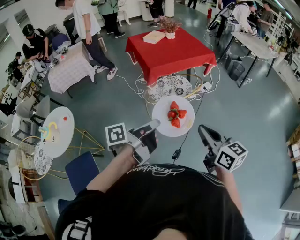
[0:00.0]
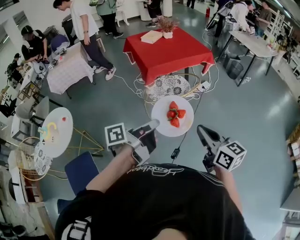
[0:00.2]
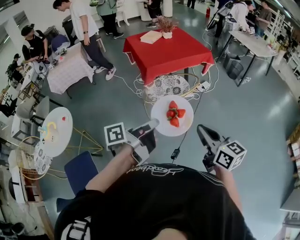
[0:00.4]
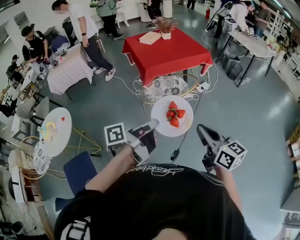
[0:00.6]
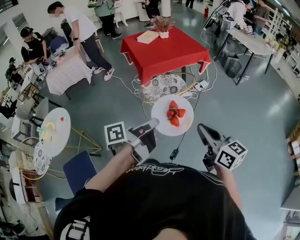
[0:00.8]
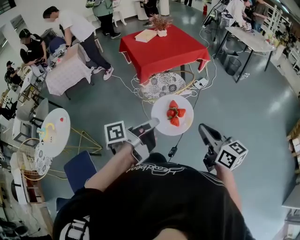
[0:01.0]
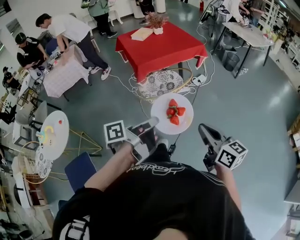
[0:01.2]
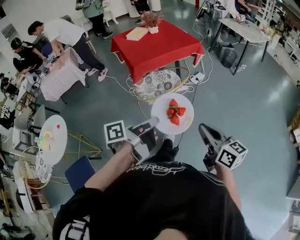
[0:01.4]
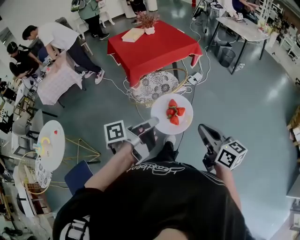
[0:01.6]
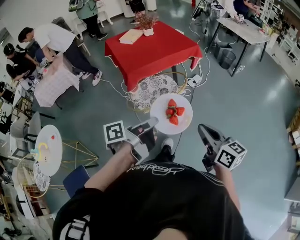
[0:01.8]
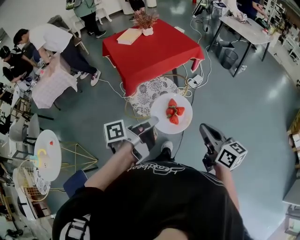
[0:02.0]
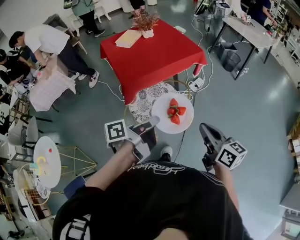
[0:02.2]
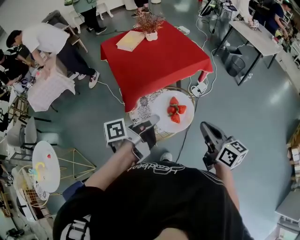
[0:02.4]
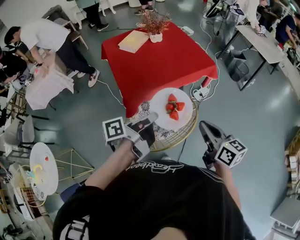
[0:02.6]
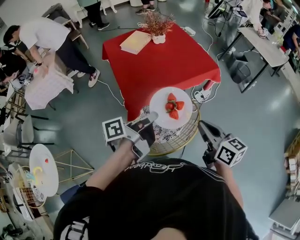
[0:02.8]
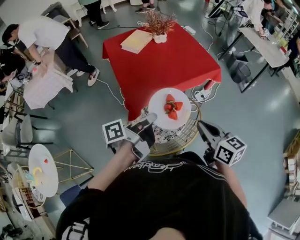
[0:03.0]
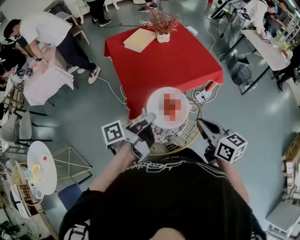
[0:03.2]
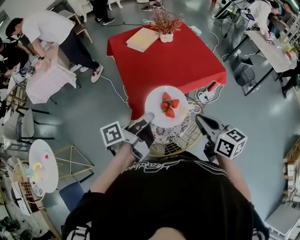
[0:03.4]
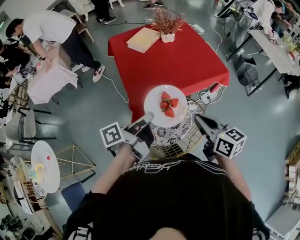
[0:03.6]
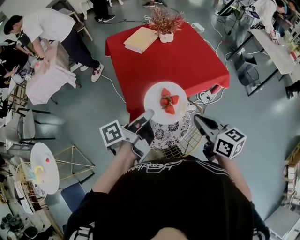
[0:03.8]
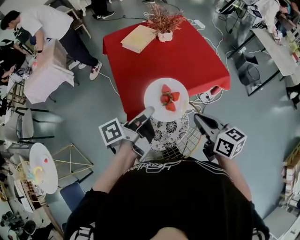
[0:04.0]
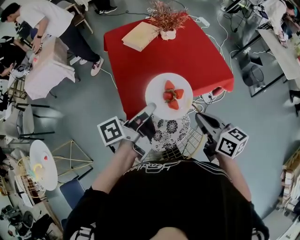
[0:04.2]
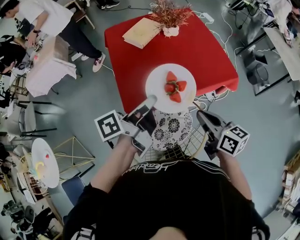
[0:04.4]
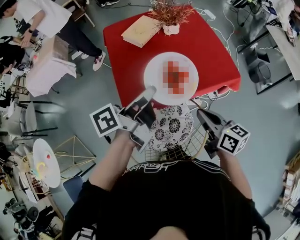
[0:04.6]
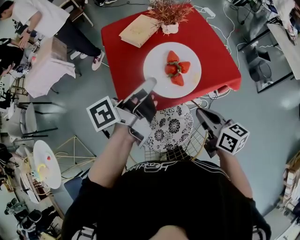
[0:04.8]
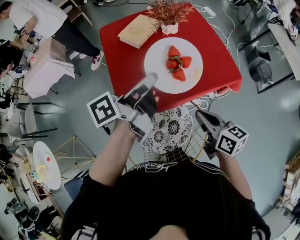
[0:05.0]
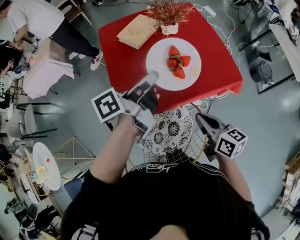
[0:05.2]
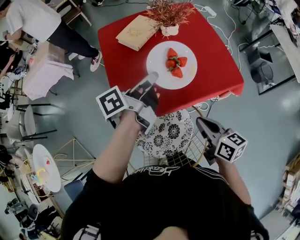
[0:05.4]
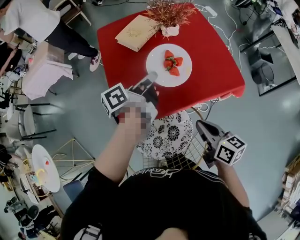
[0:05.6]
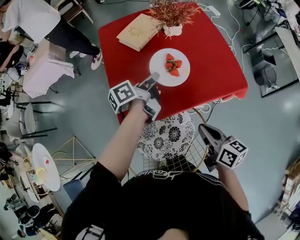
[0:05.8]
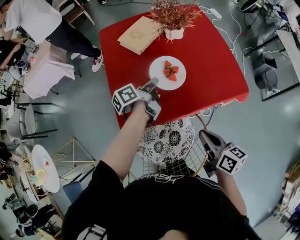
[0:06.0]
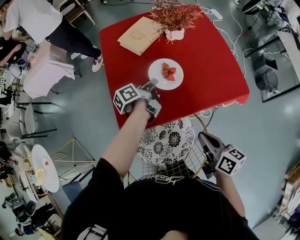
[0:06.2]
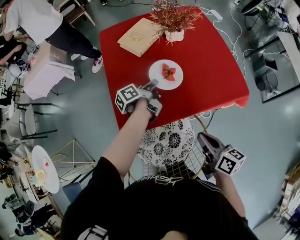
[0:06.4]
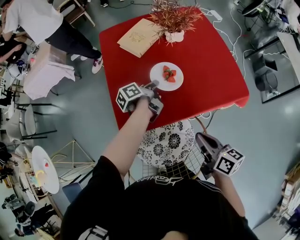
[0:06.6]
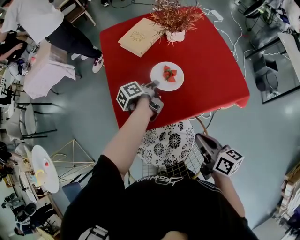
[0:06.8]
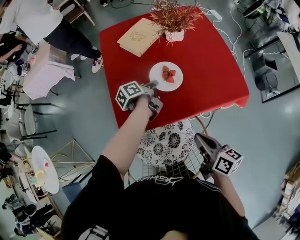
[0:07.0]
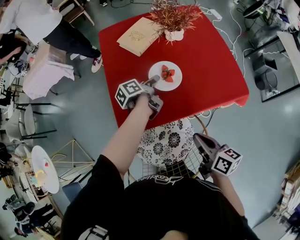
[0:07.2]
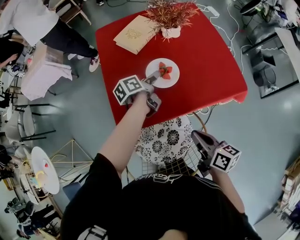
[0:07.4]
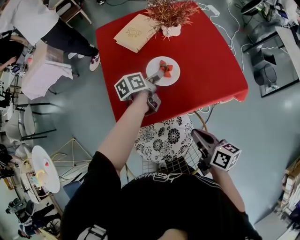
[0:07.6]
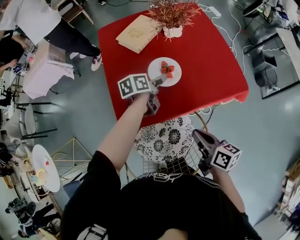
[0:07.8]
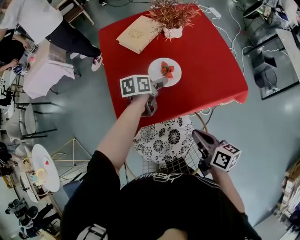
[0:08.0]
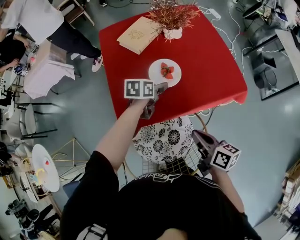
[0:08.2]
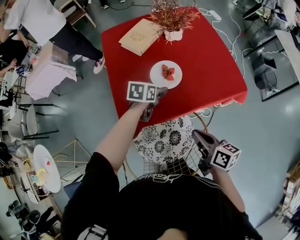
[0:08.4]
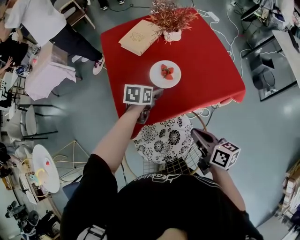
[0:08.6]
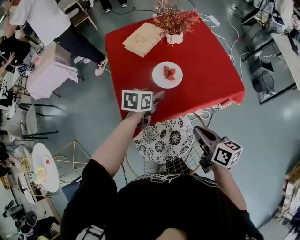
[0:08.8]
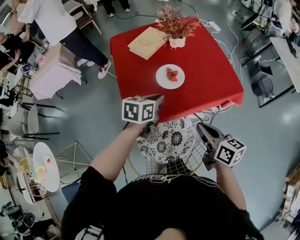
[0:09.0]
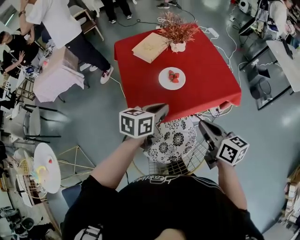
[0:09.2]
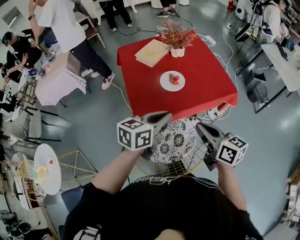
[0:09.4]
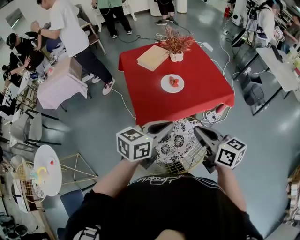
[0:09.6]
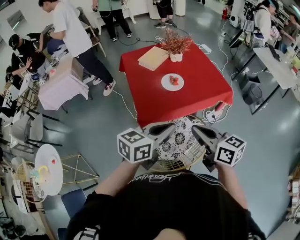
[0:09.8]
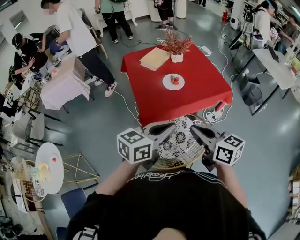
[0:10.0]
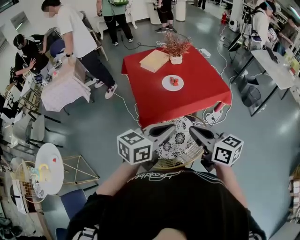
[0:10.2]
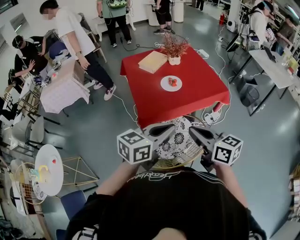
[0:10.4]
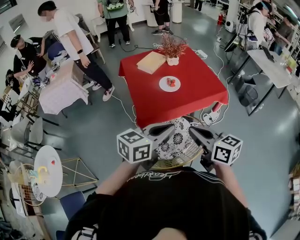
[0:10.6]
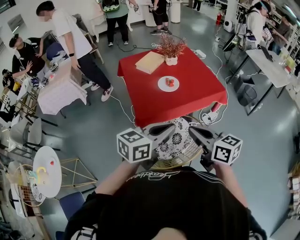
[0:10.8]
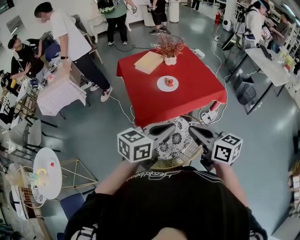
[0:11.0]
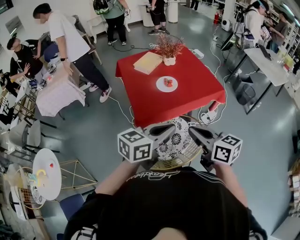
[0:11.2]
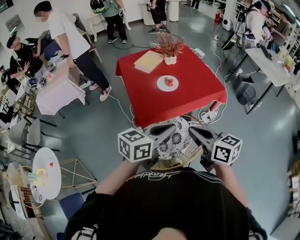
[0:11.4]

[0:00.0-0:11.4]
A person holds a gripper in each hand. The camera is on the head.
0:00.0 to 0:01.4: The two grippers go approximately 10 cm to the right.
0:01.4 to 0:02.8: The pair of grippers is taken forward, approximately 40 cm.
0:02.8 to 0:04.2: Both grippers move forward, approximately 15 cm.
0:04.2 to 0:05.6: The right gripper is displaced downward and forward by roughly 10 cm, while the left gripper goes some 20 cm forward.
0:05.6 to 0:07.2: The left gripper goes about 15 cm downward and forward, swivels roughly 20 degrees, and opens its fingers.
0:07.2 to 0:08.6: The left gripper twists about 60 degrees clockwise, seen from behind, and opens up.
0:08.6 to 0:10.0: The left gripper travels backward and upward by approximately 40 cm, tilts its fingers some 40 degrees upward, and closes. The right gripper travels upward, backward and to the left by roughly 25 cm, and turns by roughly 20 degrees.
0:10.0 to 0:11.4: There are only small adjustments of the grippers.

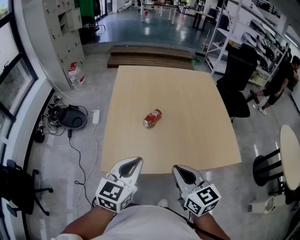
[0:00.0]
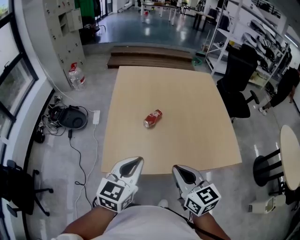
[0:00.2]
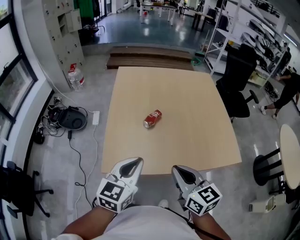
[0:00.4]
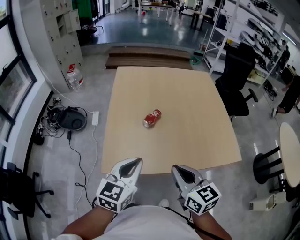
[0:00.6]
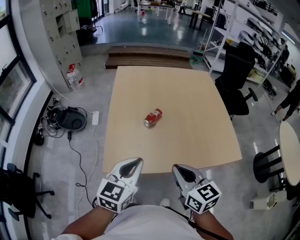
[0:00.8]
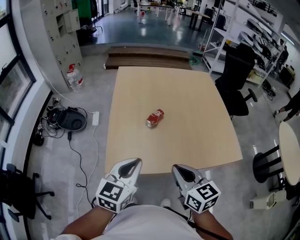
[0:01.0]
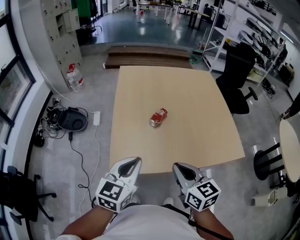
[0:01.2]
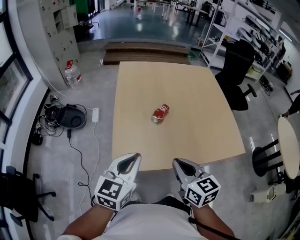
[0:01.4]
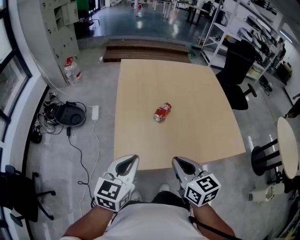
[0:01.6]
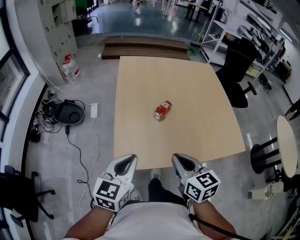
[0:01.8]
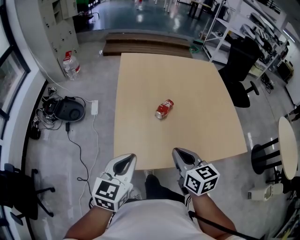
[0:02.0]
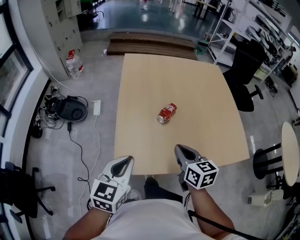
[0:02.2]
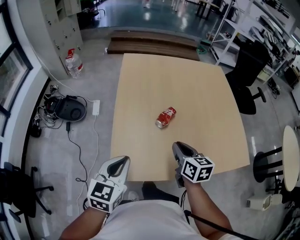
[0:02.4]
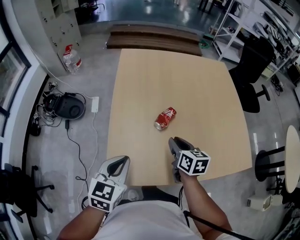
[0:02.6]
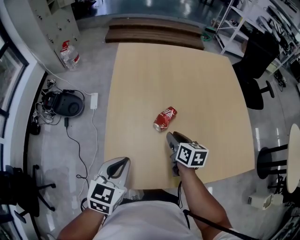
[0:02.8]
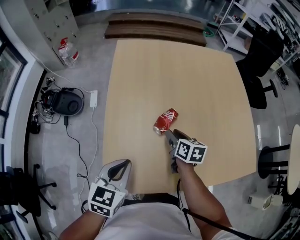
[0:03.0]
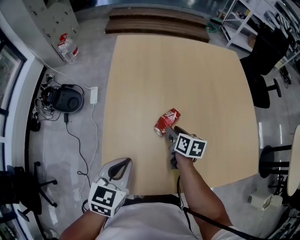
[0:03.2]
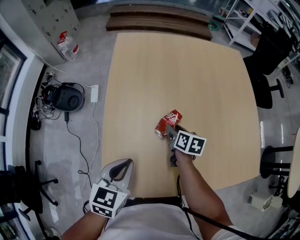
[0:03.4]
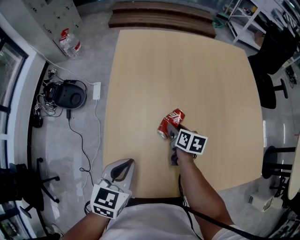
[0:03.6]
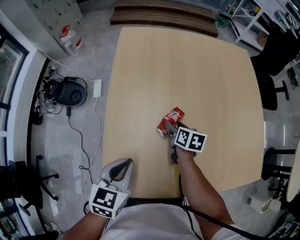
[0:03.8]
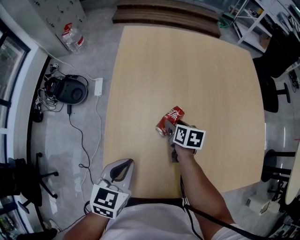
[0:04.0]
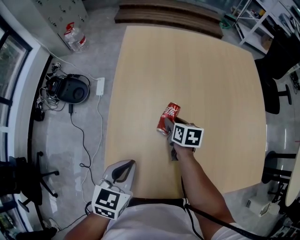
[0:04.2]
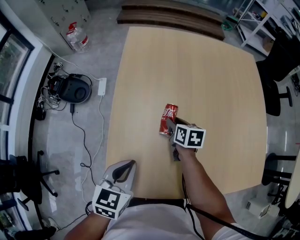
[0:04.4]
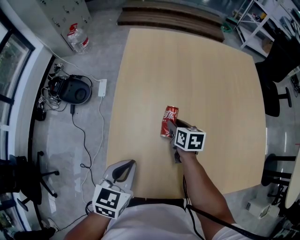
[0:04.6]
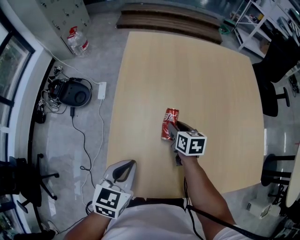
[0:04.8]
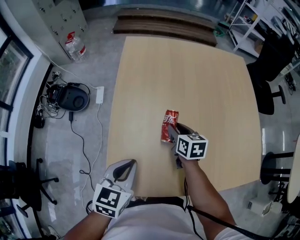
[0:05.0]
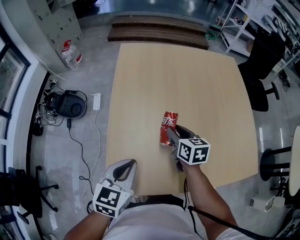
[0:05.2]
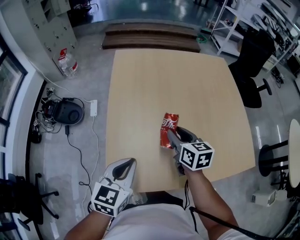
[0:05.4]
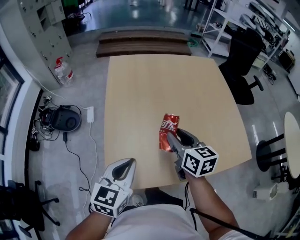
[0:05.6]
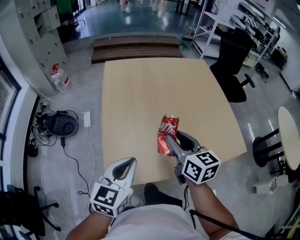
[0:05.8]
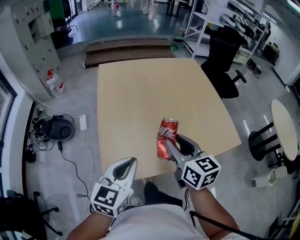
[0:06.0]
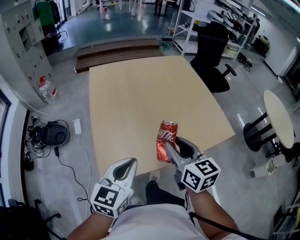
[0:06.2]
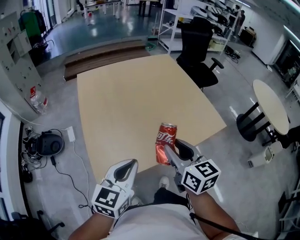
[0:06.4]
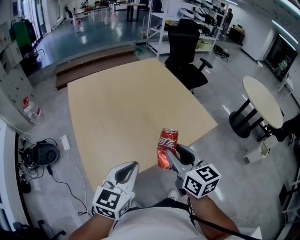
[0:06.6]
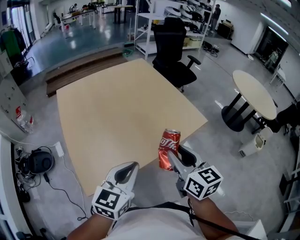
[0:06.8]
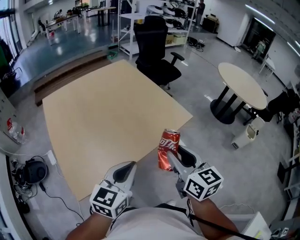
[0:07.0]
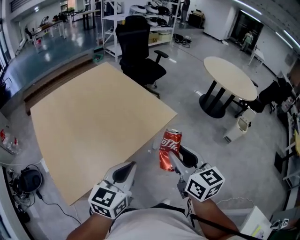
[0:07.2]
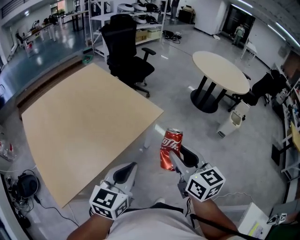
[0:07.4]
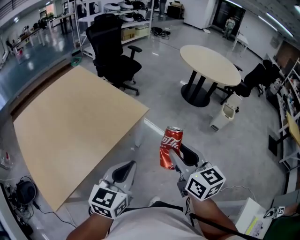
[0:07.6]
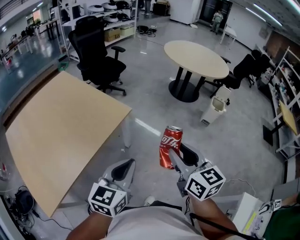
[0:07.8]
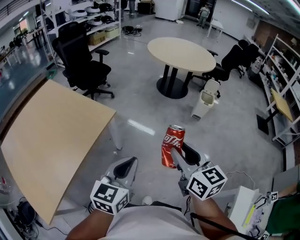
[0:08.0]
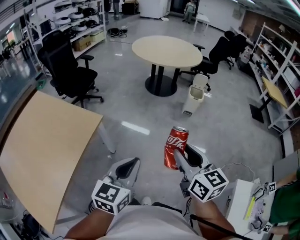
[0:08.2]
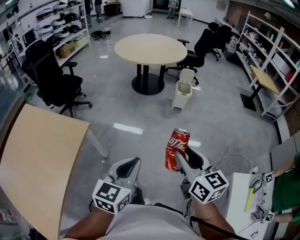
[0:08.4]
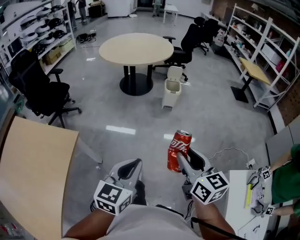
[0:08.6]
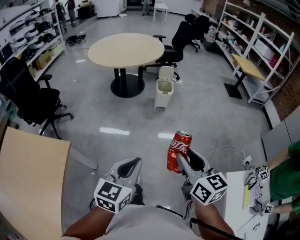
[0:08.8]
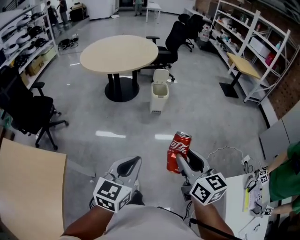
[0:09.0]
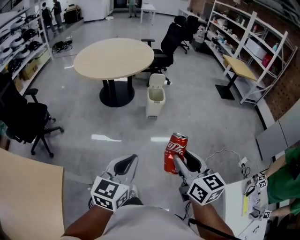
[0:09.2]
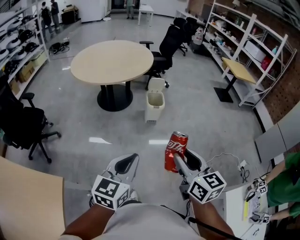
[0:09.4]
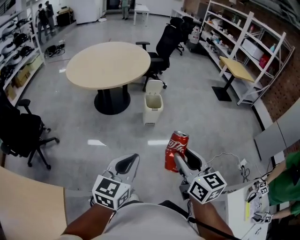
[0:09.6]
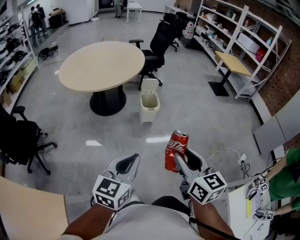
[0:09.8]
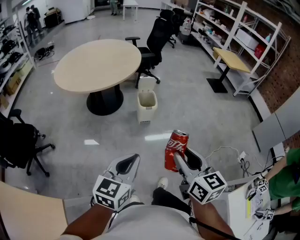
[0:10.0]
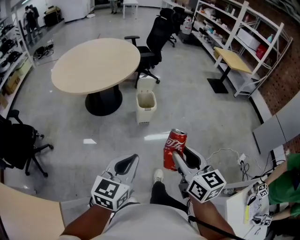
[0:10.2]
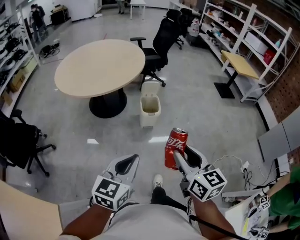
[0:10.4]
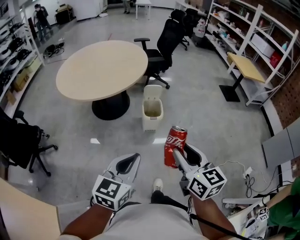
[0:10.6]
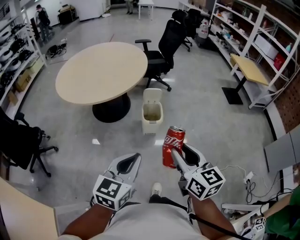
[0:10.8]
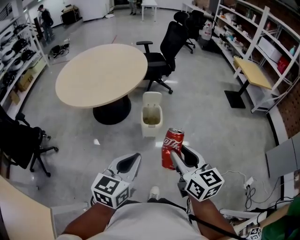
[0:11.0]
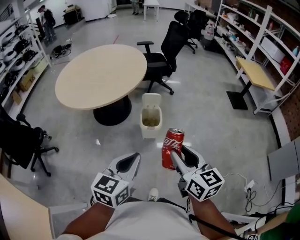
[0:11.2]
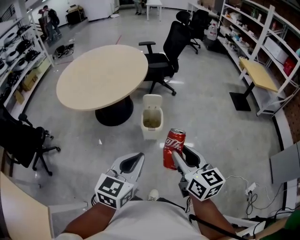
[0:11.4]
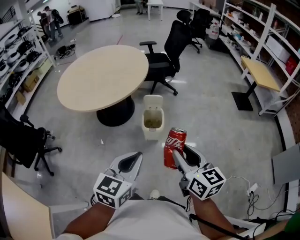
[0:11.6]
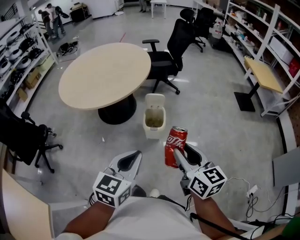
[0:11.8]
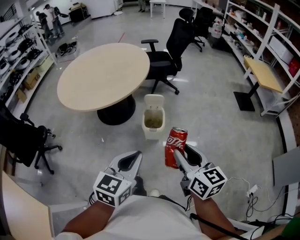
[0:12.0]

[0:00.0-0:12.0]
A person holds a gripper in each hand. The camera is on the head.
0:00.0 to 0:01.6: The grippers both shift to the left by about 10 cm.
0:01.6 to 0:03.0: The right gripper heads forward and downward, covering some 30 cm, swivels about 30 degrees, and opens its fingers, while the left gripper goes some 15 cm forward and downward.
0:03.0 to 0:04.4: The right gripper heads forward and downward, covering about 10 cm, and opens, then closes once more.
0:04.4 to 0:06.0: The right gripper is displaced upward and backward by about 35 cm, and swivels roughly 30 degrees. The left gripper travels upward and backward by about 15 cm, and turns by approximately 30 degrees.
0:06.0 to 0:07.6: The left gripper changes place by some 40 cm, and turns by approximately 40 degrees; the right gripper changes place by approximately 50 cm, and swivels about 40 degrees.
0:07.6 to 0:09.0: The left gripper ends up roughly 40 cm from where it was, and rotates roughly 40 degrees. The right gripper shifts by some 35 cm, and swivels about 40 degrees.
0:09.0 to 0:10.4: The two grippers go some 25 cm forward.
0:10.4 to 0:12.0: Both grippers travel together forward and to the right, some 20 cm.
